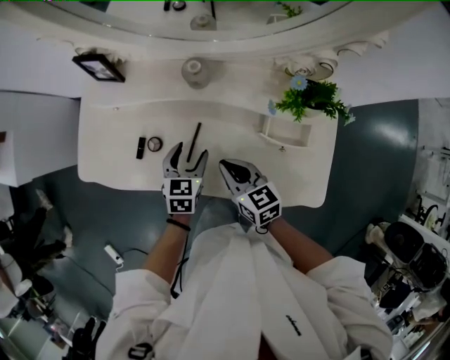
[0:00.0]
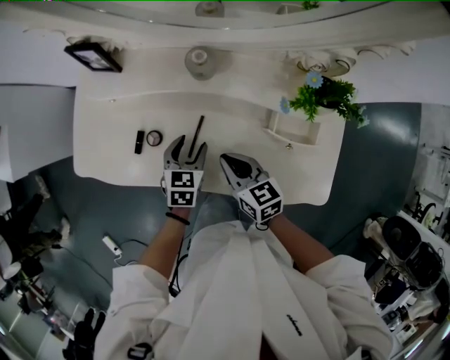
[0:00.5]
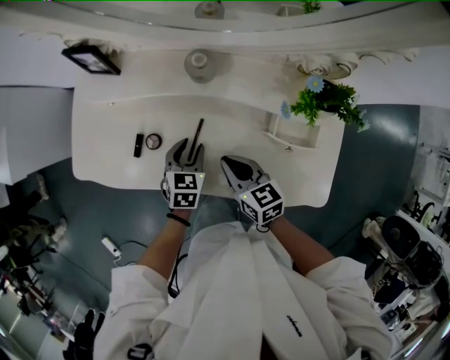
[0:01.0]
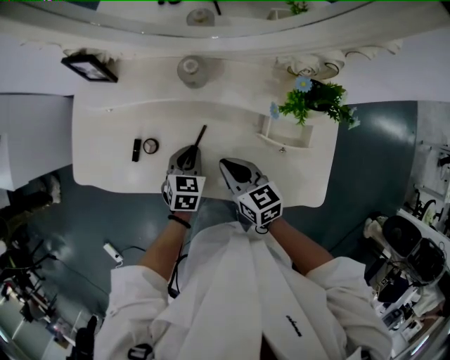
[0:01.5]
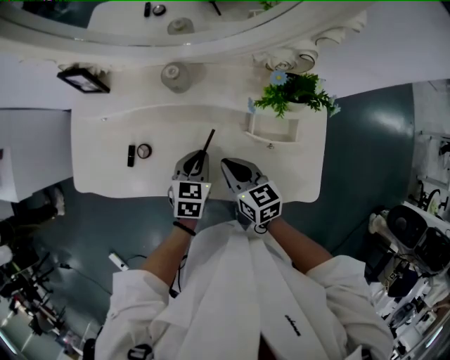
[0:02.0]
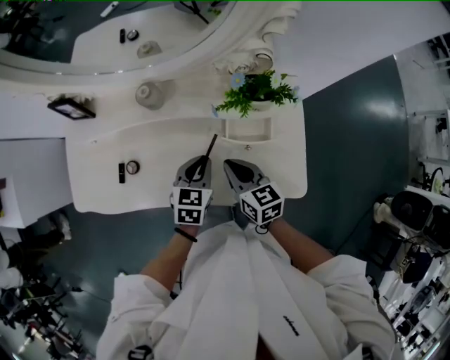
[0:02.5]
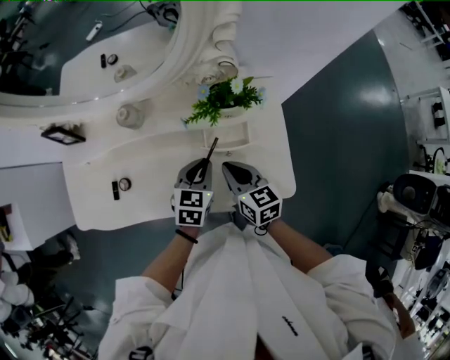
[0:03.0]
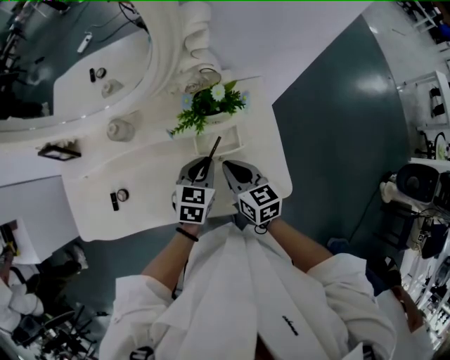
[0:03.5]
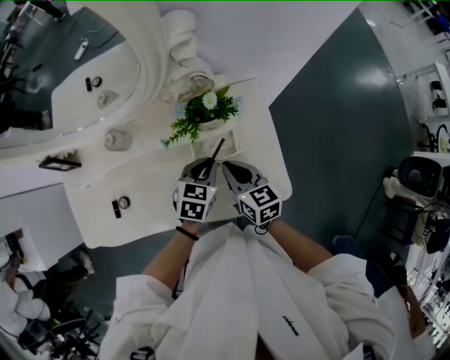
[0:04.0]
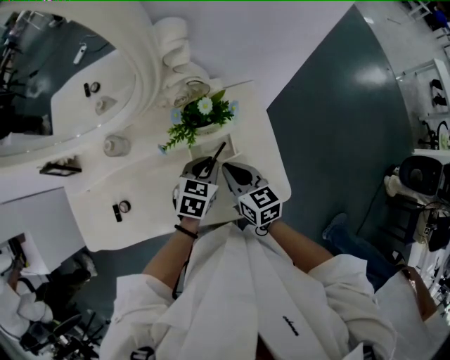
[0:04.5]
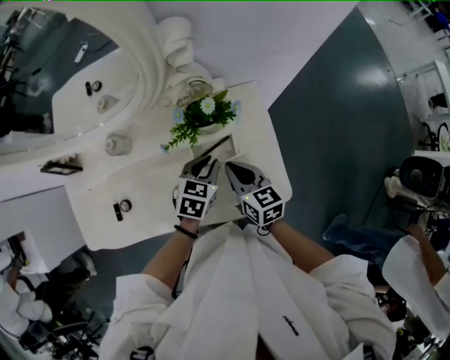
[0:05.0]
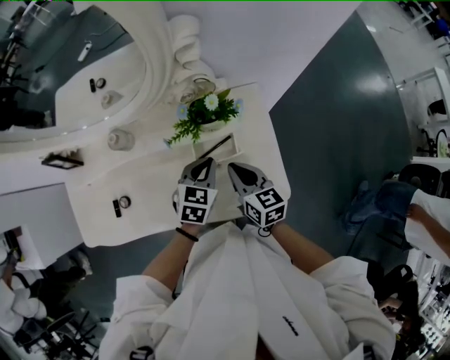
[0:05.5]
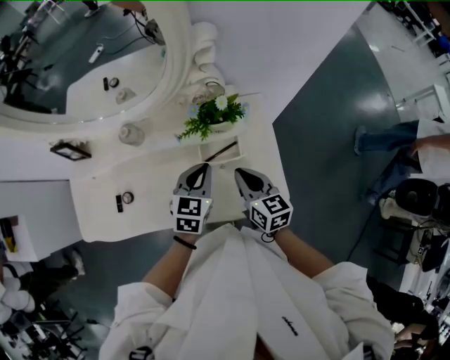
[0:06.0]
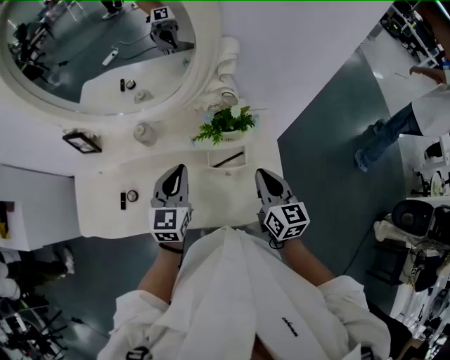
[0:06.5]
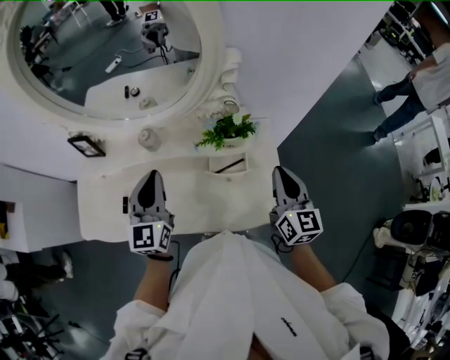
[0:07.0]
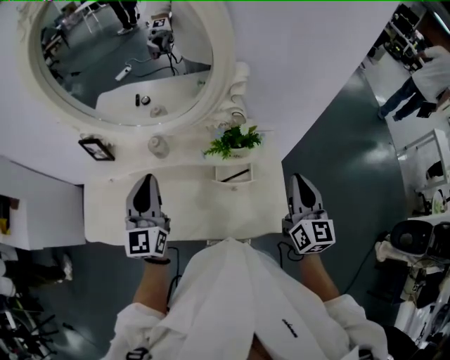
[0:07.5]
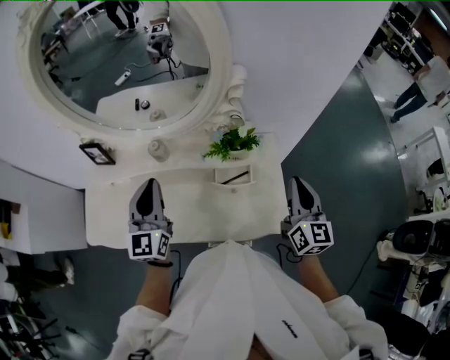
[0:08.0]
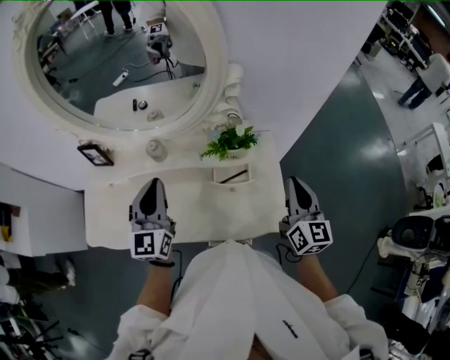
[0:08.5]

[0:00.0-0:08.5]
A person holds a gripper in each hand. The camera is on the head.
0:00.0 to 0:02.0: The left gripper travels to the right by approximately 5 cm, and closes its fingers.
0:02.0 to 0:04.0: The grippers both shift to the right by some 20 cm. The left gripper changes its angle by some 20 degrees.
0:04.0 to 0:06.5: The right gripper travels upward and to the right by about 10 cm. Meanwhile the left gripper shifts some 20 cm upward and to the left, and rotates about 40 degrees.
0:06.5 to 0:08.5: The left gripper shifts some 15 cm upward and to the left, and changes its angle by roughly 20 degrees. Meanwhile the right gripper shifts about 10 cm upward and to the right.

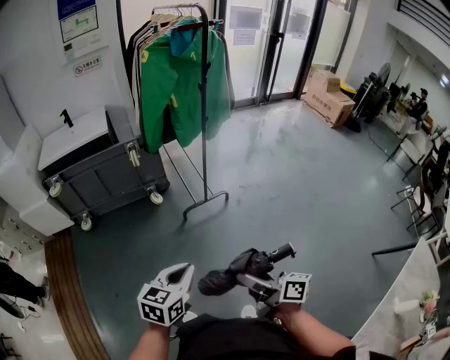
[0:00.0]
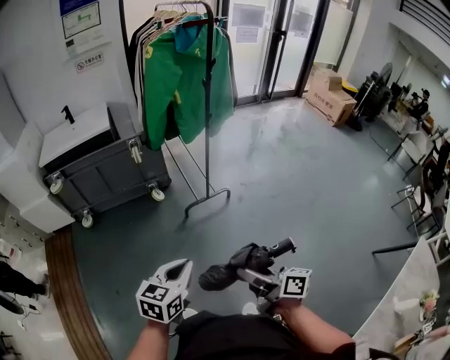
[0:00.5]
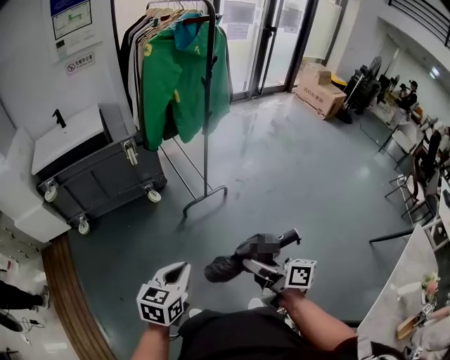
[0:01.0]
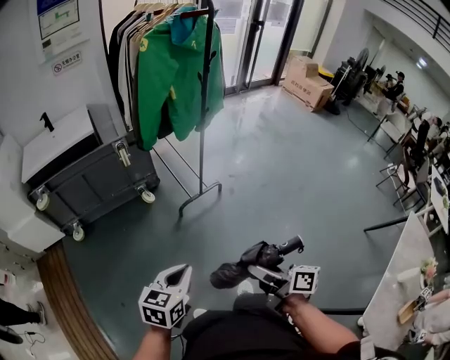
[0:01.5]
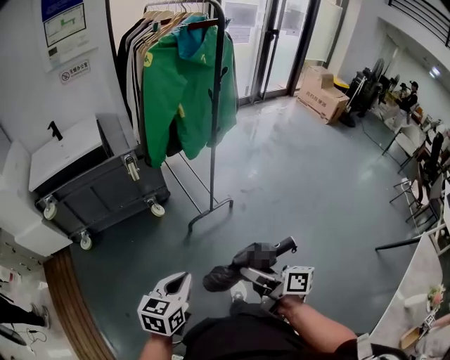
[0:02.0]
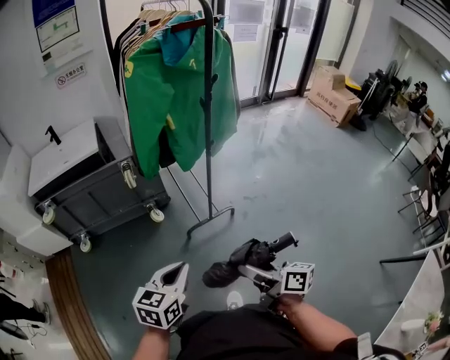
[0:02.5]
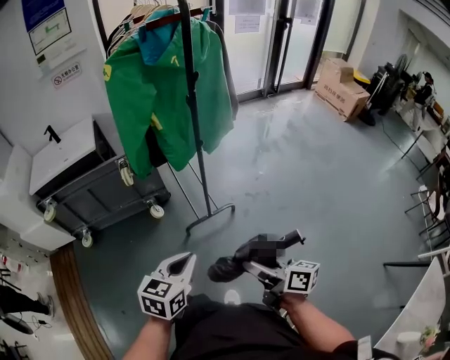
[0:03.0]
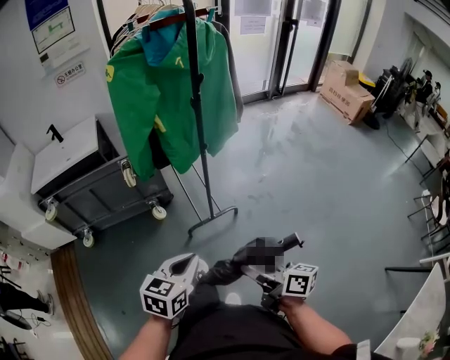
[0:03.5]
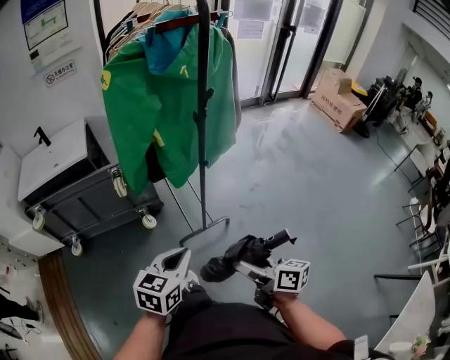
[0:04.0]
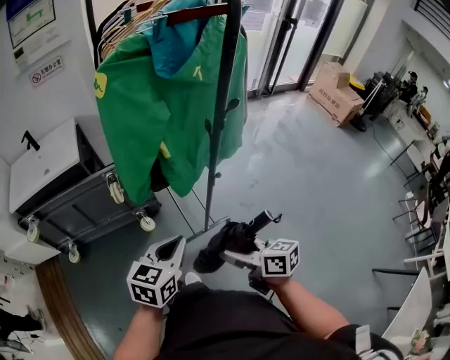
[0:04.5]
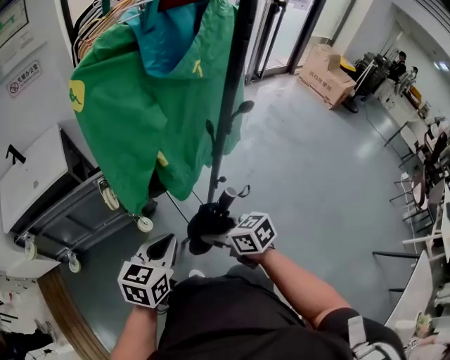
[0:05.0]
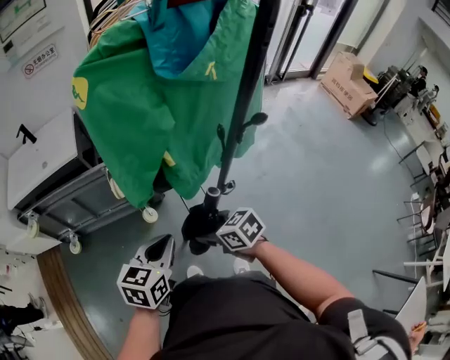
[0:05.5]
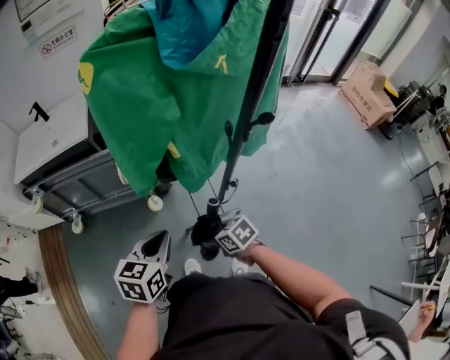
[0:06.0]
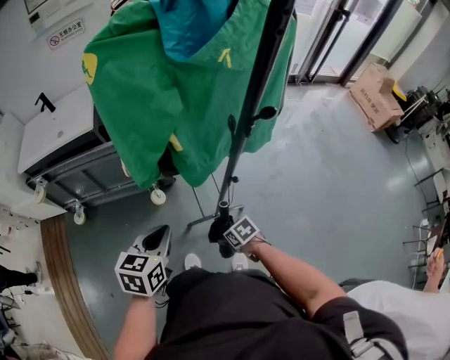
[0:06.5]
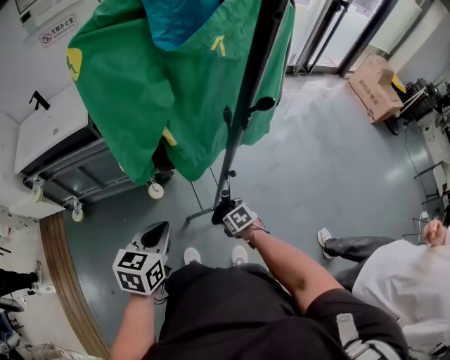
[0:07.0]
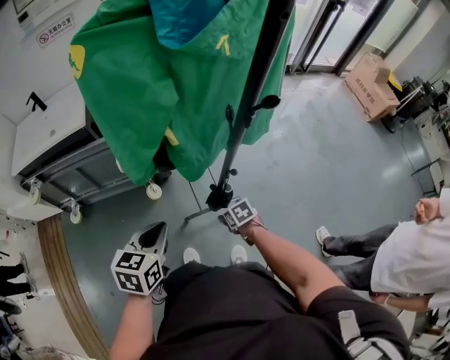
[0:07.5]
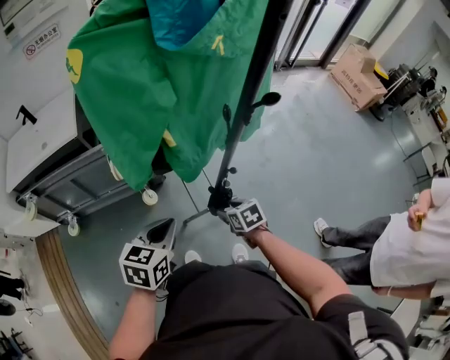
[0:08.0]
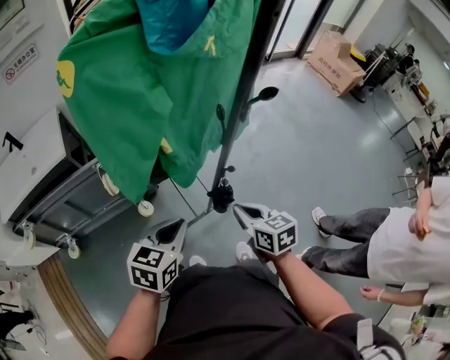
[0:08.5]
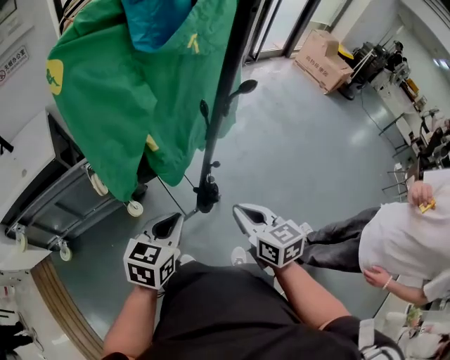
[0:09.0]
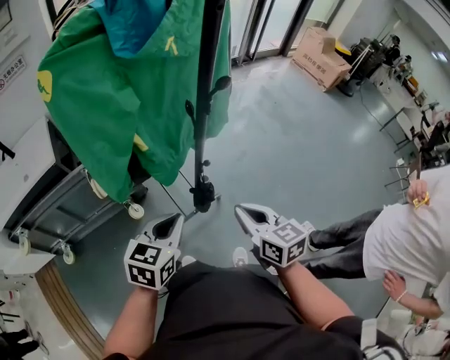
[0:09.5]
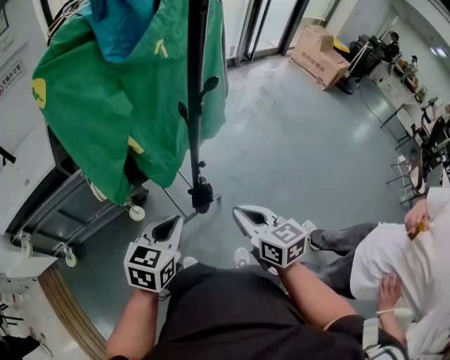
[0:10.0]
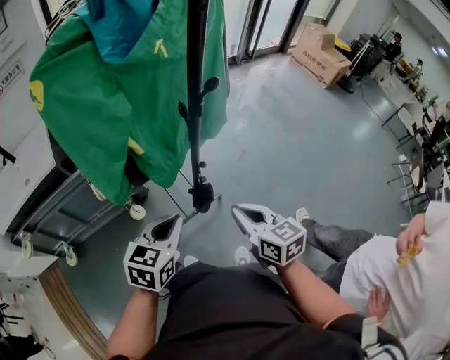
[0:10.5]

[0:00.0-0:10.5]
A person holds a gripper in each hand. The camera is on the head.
0:00.0 to 0:02.0: The two grippers go approximately 15 cm forward and to the left.
0:02.0 to 0:04.0: The two grippers go about 25 cm forward and to the right.
0:04.0 to 0:06.5: The left gripper moves approximately 20 cm. The right gripper travels downward by some 25 cm, and tips its fingers downward by some 50 degrees.
0:06.5 to 0:08.5: The right gripper heads upward, covering some 20 cm, swivels about 50 degrees, and closes its fingers. The left gripper rotates some 20 degrees.
0:08.5 to 0:10.5: The right gripper moves upward and to the right, some 10 cm, while the left gripper shifts roughly 5 cm to the right.

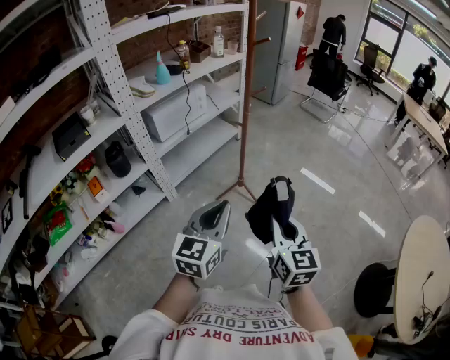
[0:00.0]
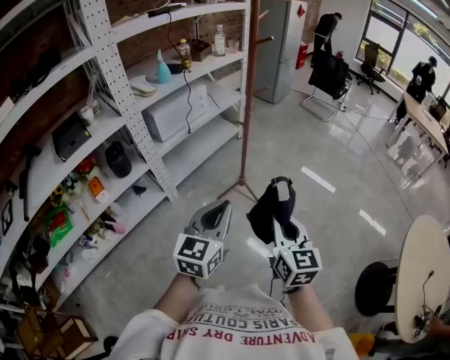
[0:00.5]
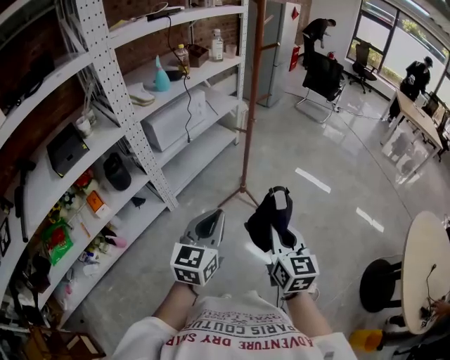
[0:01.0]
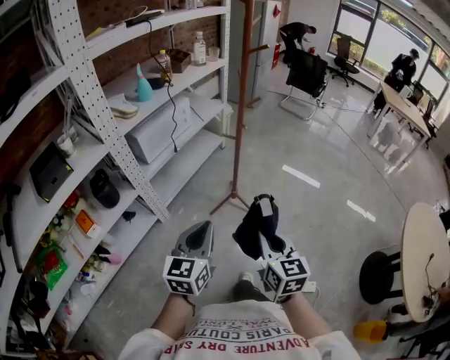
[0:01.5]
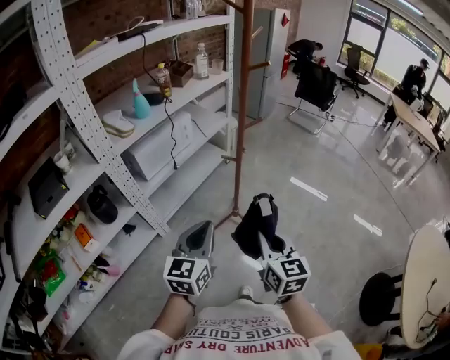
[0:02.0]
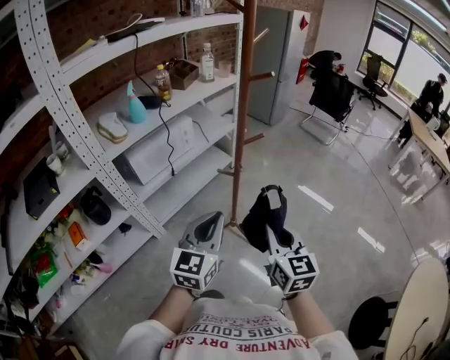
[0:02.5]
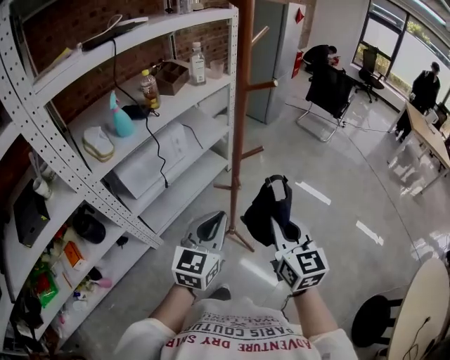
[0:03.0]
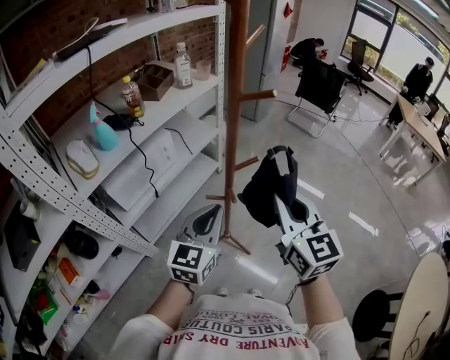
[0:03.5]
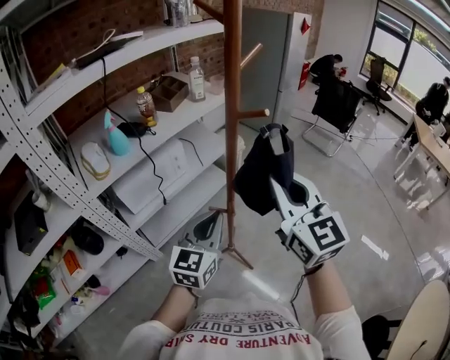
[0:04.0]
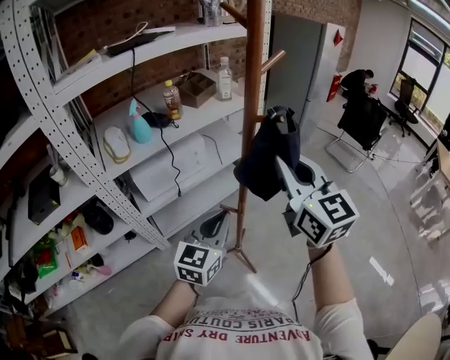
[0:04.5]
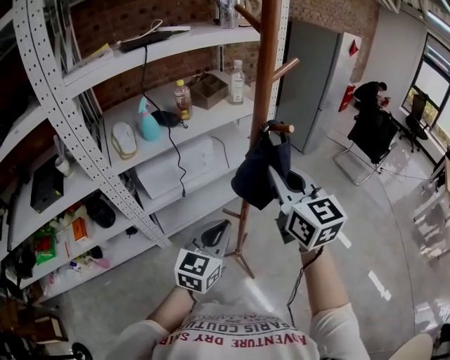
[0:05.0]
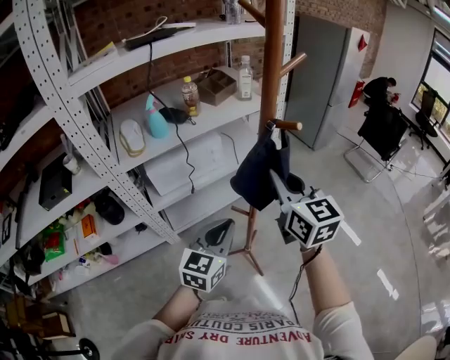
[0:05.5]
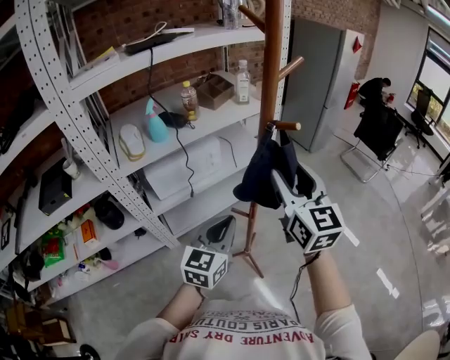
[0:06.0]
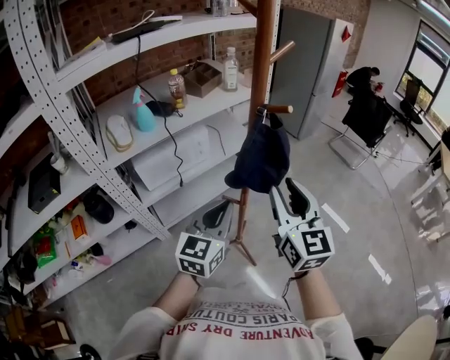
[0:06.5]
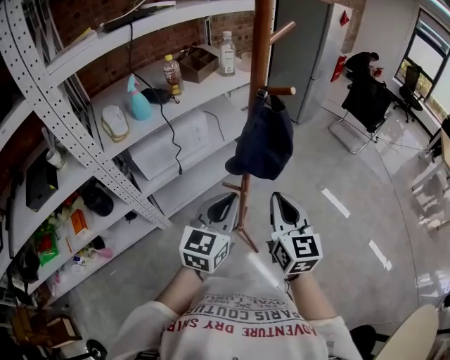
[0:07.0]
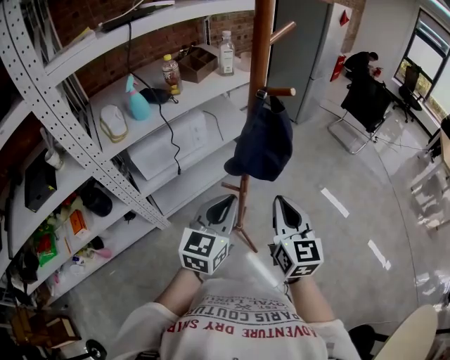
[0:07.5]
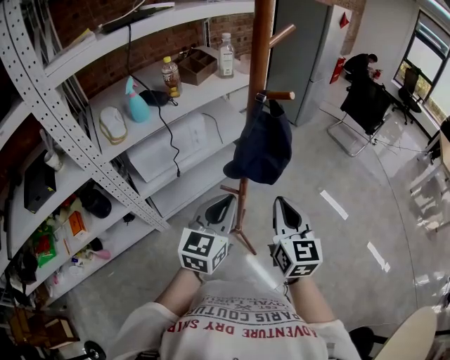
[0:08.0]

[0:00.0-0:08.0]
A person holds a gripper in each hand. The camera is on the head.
0:00.0 to 0:02.0: The two grippers go roughly 20 cm forward and to the left.
0:02.0 to 0:04.0: The left gripper goes about 30 cm forward, while the right gripper goes some 40 cm forward and upward, and turns by roughly 30 degrees.
0:04.0 to 0:06.0: The right gripper shifts approximately 5 cm forward, and opens its fingers.
0:06.0 to 0:08.0: The right gripper shifts about 15 cm downward and backward, and closes up.
